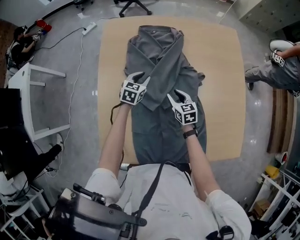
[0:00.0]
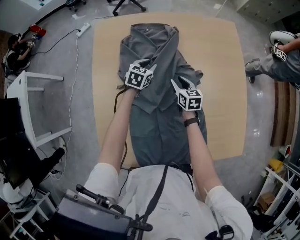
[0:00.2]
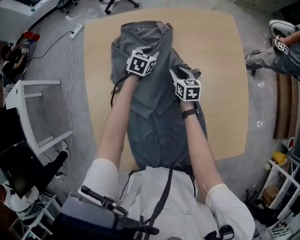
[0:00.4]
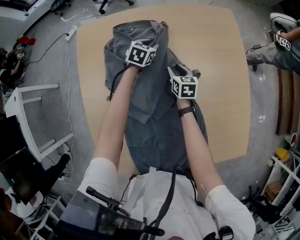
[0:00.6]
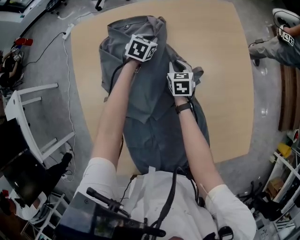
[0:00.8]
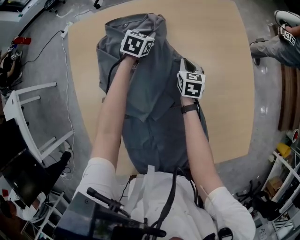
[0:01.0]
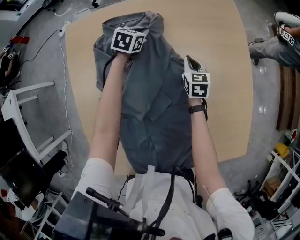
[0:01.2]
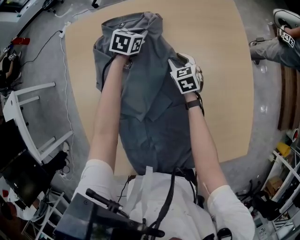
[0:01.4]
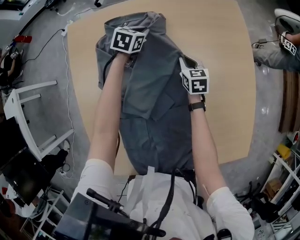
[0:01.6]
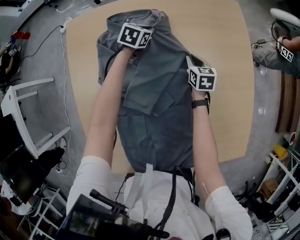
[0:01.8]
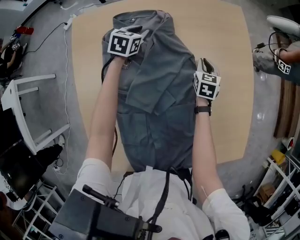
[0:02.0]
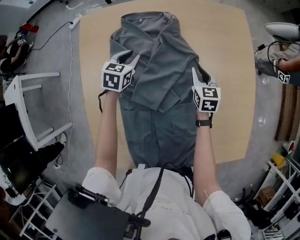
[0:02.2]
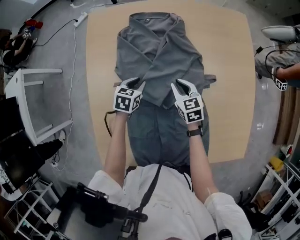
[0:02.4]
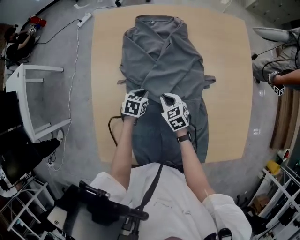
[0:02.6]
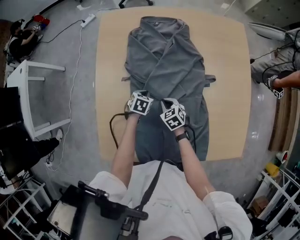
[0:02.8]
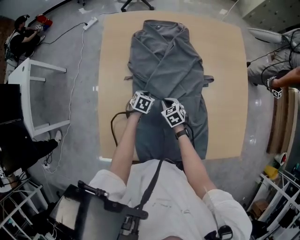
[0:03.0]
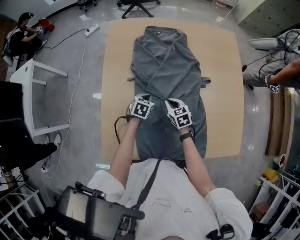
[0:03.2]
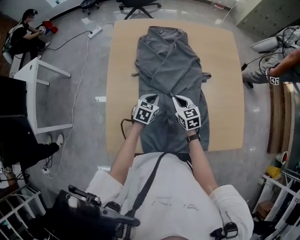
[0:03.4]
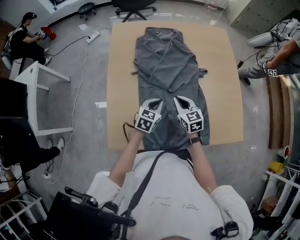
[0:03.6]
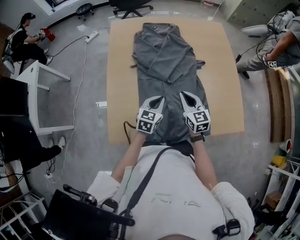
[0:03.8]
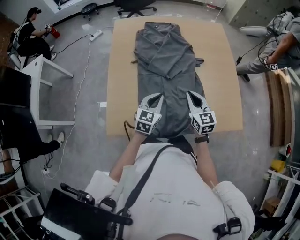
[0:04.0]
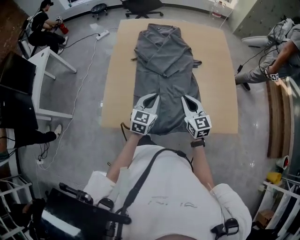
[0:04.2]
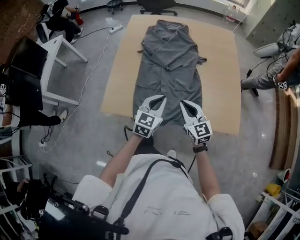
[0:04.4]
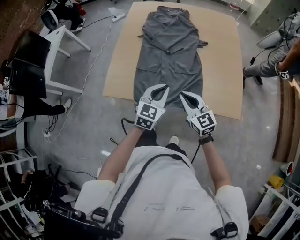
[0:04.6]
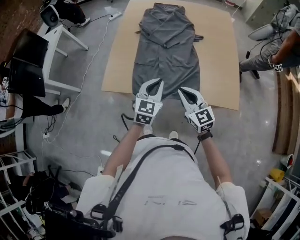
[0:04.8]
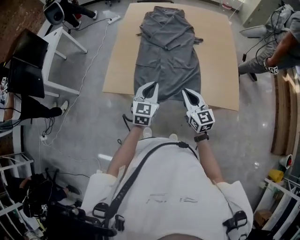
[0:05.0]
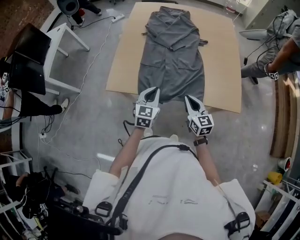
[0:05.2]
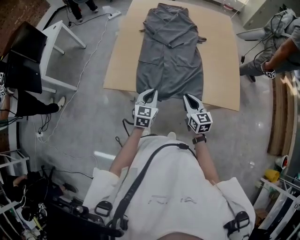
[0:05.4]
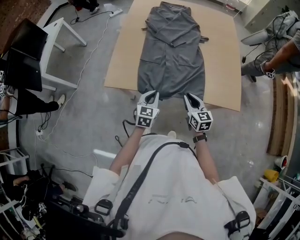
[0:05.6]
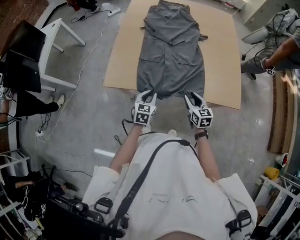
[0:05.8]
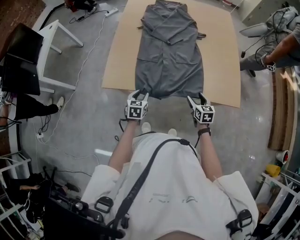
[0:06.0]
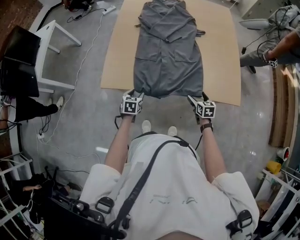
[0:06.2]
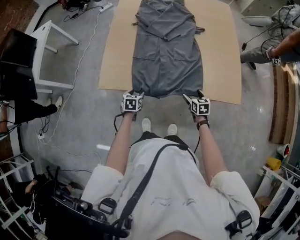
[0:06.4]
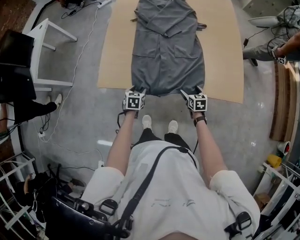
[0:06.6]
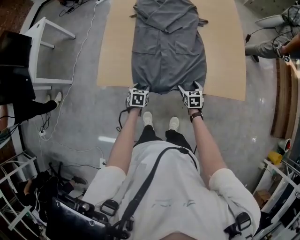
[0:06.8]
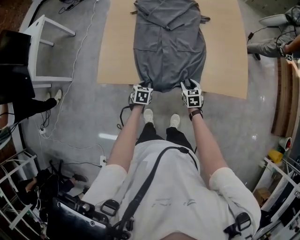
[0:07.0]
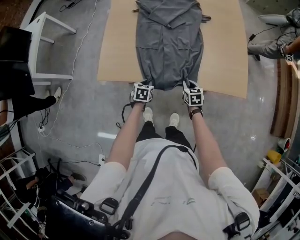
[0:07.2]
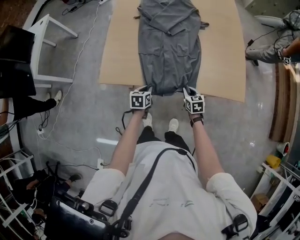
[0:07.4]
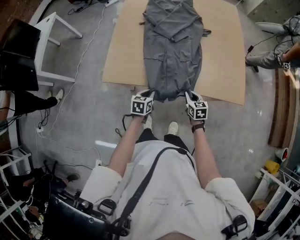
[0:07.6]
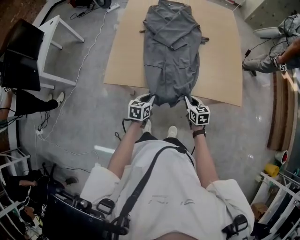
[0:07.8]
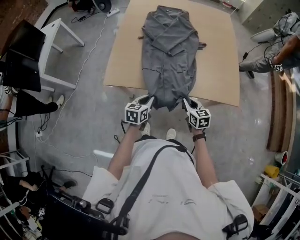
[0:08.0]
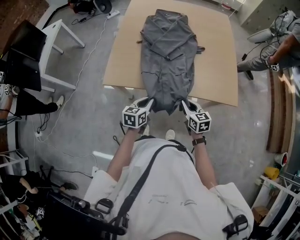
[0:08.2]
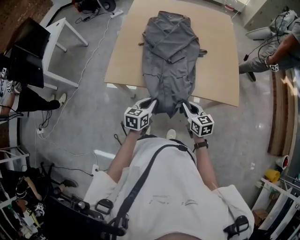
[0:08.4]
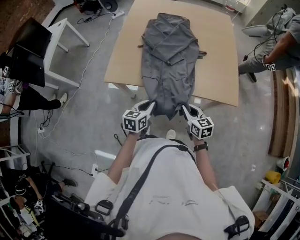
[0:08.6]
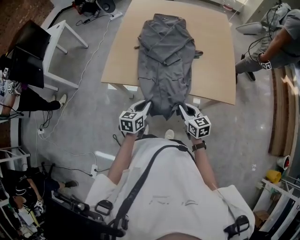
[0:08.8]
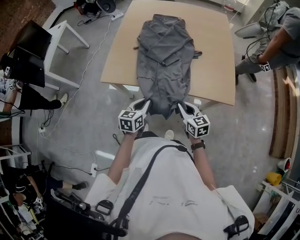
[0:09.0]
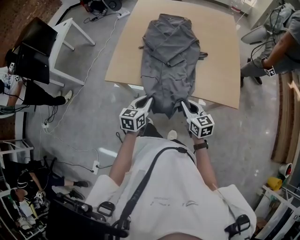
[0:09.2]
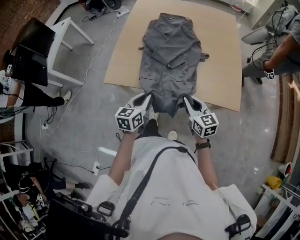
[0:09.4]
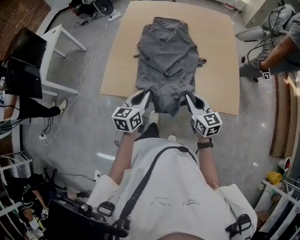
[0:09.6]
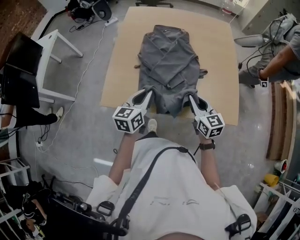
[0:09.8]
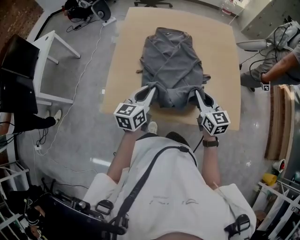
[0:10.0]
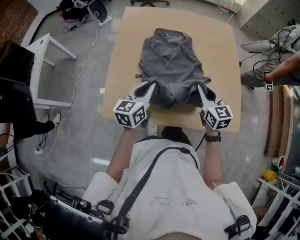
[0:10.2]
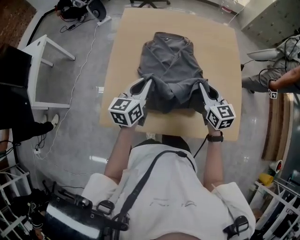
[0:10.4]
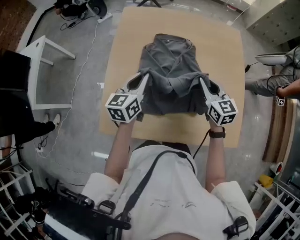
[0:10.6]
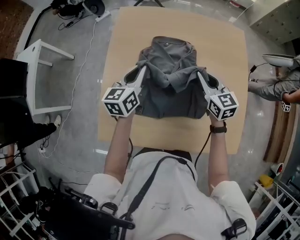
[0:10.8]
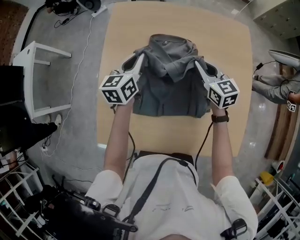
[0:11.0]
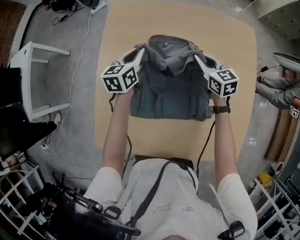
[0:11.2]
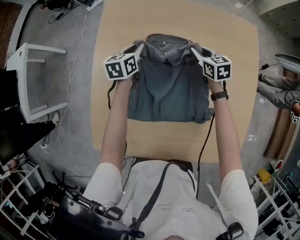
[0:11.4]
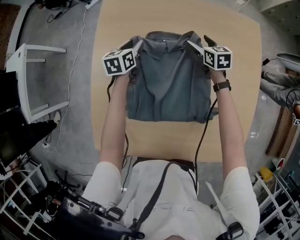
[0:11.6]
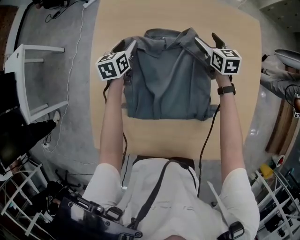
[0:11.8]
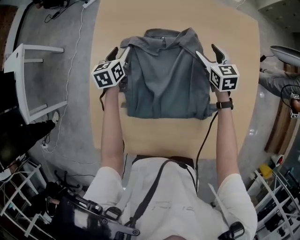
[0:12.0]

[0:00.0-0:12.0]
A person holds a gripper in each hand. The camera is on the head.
0:00.0 to 0:01.6: The left gripper travels forward by roughly 25 cm, and closes. Meanwhile the right gripper heads forward and to the right, covering approximately 25 cm.
0:01.6 to 0:03.0: The left gripper shifts by about 35 cm, turns by about 20 degrees, and opens and closes again, while the right gripper travels upward and back again, about 5 cm each way, and rotates about 30 degrees.
0:03.0 to 0:04.4: The two grippers go approximately 40 cm upward, backward and to the right. The right gripper points its fingers approximately 40 degrees further upward, while the left gripper tips its fingers upward by roughly 40 degrees.
0:04.4 to 0:06.0: The right gripper moves downward, backward and to the right, approximately 20 cm, changes its angle by approximately 30 degrees, and opens up; the left gripper shifts roughly 25 cm downward, to the left and backward, turns by approximately 30 degrees, and opens up.
0:06.0 to 0:07.6: The right gripper heads to the left, covering roughly 5 cm, and closes up. The left gripper moves roughly 10 cm downward and comes back, and closes up.
0:07.6 to 0:09.0: Both grippers travel together upward and backward, approximately 15 cm. The right gripper rotates about 20 degrees.
0:09.0 to 0:10.4: The grippers both shift forward by roughly 35 cm.
0:10.4 to 0:12.0: Both grippers travel together forward and downward, roughly 35 cm. The left gripper turns by approximately 30 degrees, and opens; the right gripper opens up.

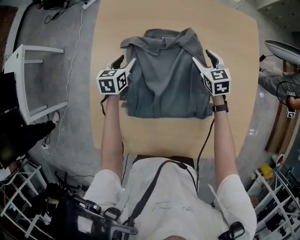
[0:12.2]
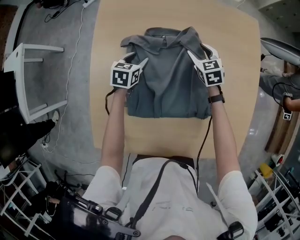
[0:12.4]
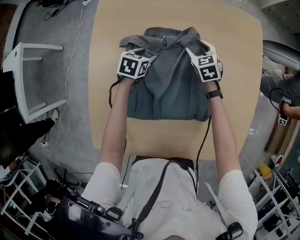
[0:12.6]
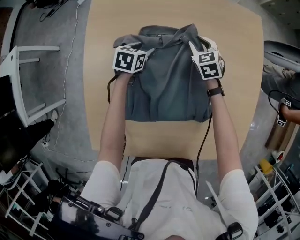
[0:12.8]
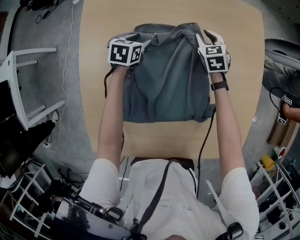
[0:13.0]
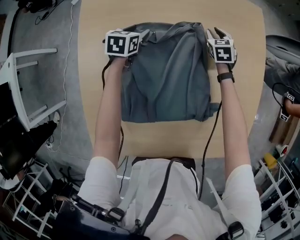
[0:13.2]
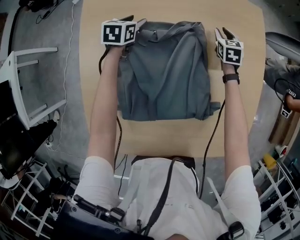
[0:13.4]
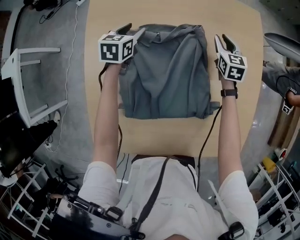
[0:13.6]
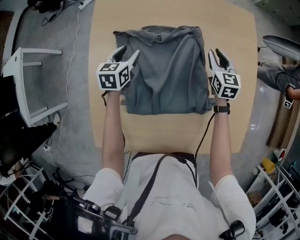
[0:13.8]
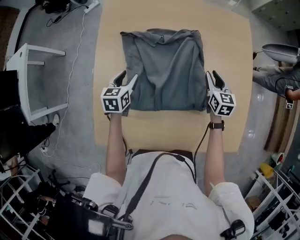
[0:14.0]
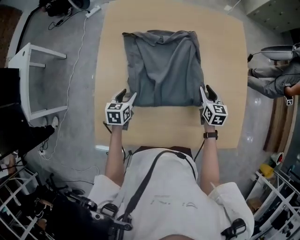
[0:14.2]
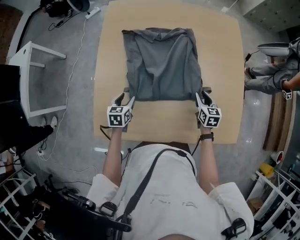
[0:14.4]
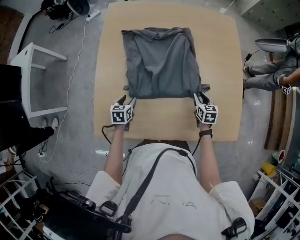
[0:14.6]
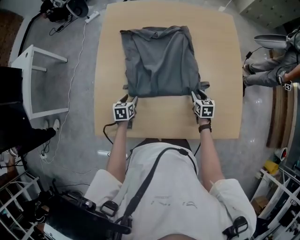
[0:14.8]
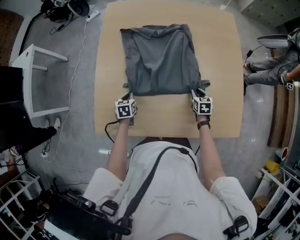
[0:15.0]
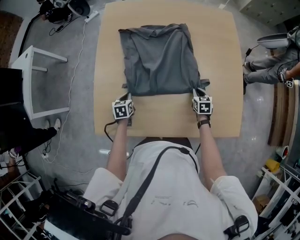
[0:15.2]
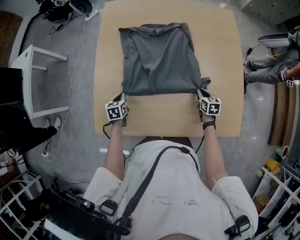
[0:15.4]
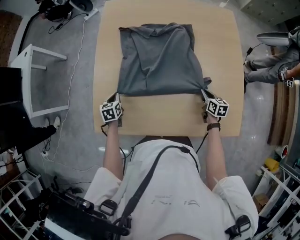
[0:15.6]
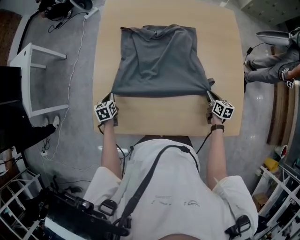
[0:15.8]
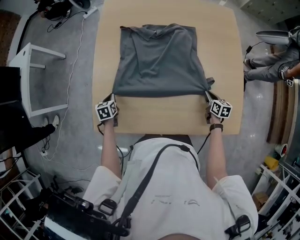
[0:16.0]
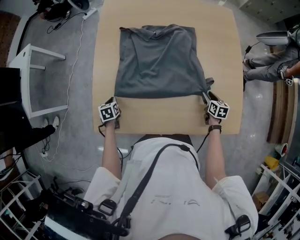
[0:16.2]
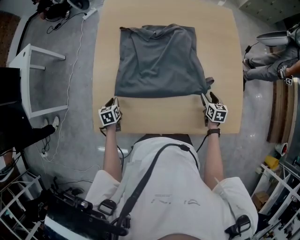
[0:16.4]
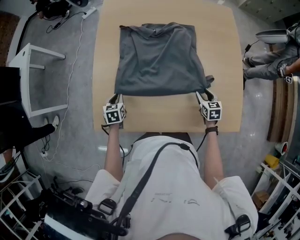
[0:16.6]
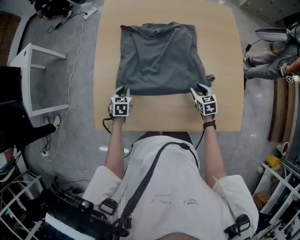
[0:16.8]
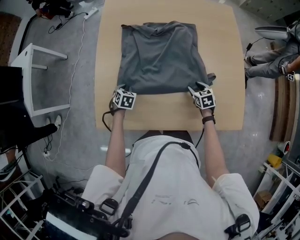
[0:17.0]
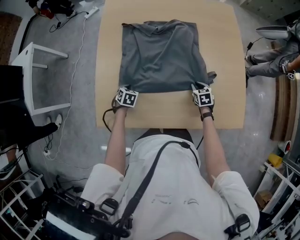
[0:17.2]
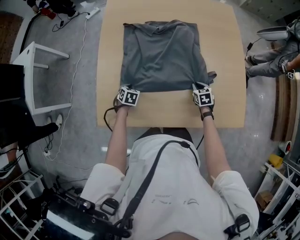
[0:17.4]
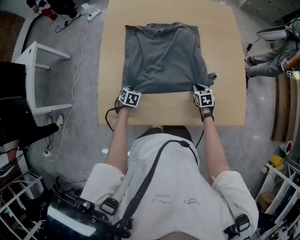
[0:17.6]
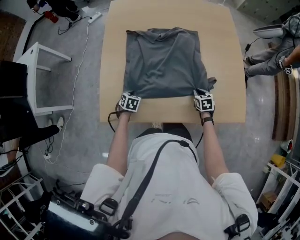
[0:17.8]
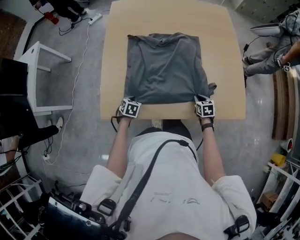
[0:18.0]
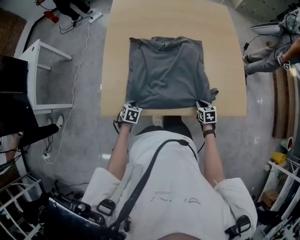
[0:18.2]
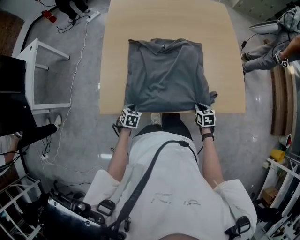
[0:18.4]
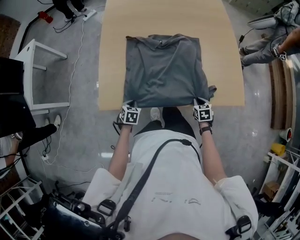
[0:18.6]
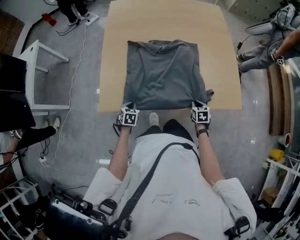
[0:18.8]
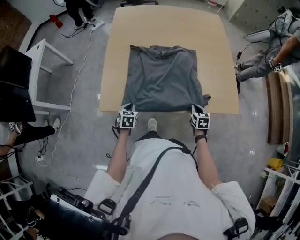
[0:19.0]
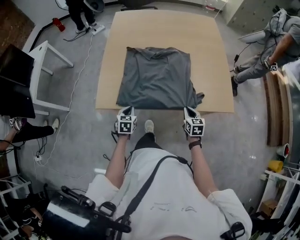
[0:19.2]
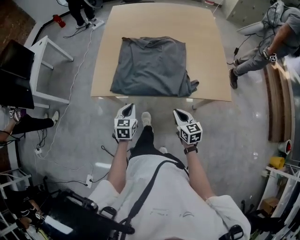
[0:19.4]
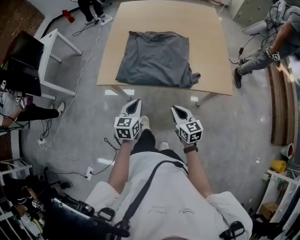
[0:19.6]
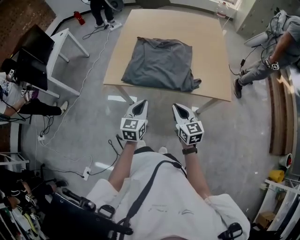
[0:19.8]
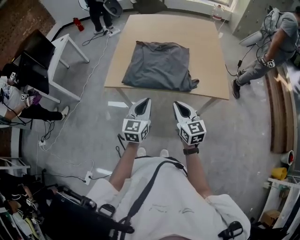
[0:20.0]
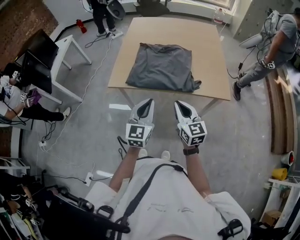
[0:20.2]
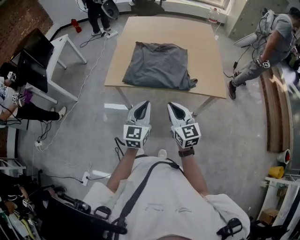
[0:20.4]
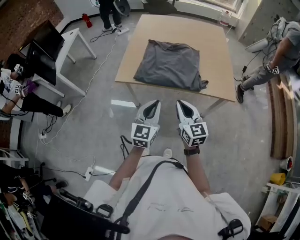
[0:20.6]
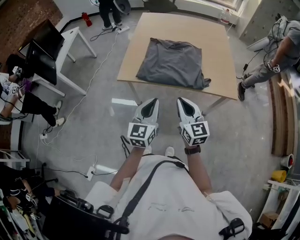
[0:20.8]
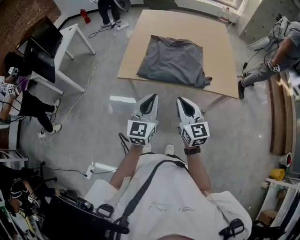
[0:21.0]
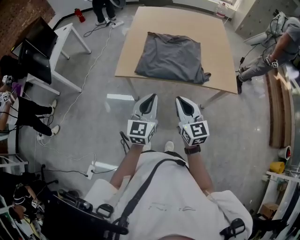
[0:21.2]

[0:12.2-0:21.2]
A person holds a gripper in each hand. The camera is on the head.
0:12.2 to 0:13.8: The left gripper moves approximately 15 cm forward and comes back, while the right gripper is displaced to the right by approximately 5 cm, and closes its fingers.
0:13.8 to 0:15.2: Both grippers travel together backward and downward, roughly 30 cm. The left gripper closes, while the right gripper turns by roughly 20 degrees.
0:15.2 to 0:16.6: The right gripper ends up some 5 cm from where it was, and opens up, while the left gripper moves to the left, approximately 5 cm.
0:16.6 to 0:18.2: The left gripper shifts roughly 15 cm backward and downward, and rotates roughly 20 degrees. Meanwhile the right gripper is displaced backward by about 15 cm, and closes.
0:18.2 to 0:19.8: The left gripper is displaced upward, backward and to the right by approximately 40 cm, and angles its fingers upward, by some 40 degrees; the right gripper is displaced upward and backward by roughly 35 cm, and tips its fingers upward by some 40 degrees.
0:19.8 to 0:21.2: The right gripper moves to the left and upward, about 15 cm, while the left gripper goes roughly 10 cm upward and to the left.

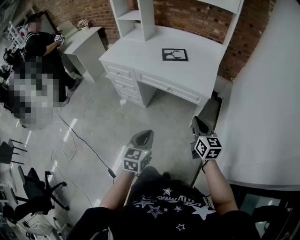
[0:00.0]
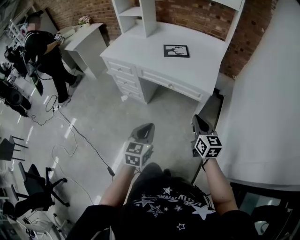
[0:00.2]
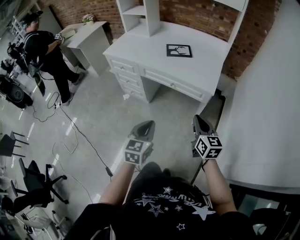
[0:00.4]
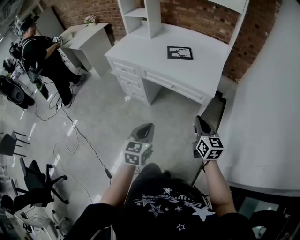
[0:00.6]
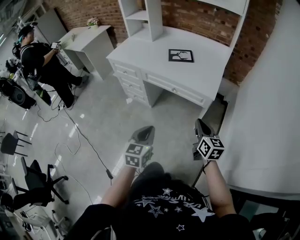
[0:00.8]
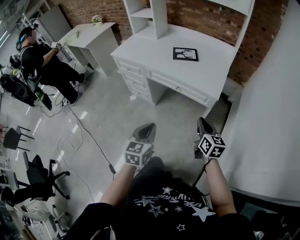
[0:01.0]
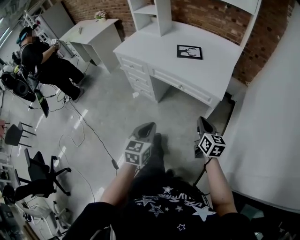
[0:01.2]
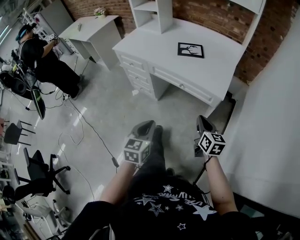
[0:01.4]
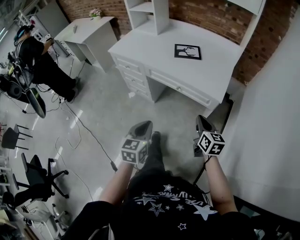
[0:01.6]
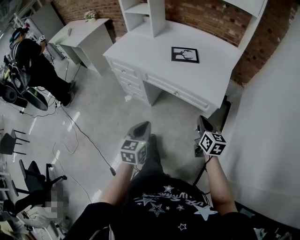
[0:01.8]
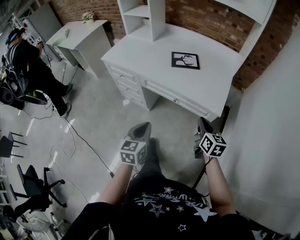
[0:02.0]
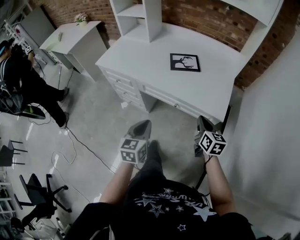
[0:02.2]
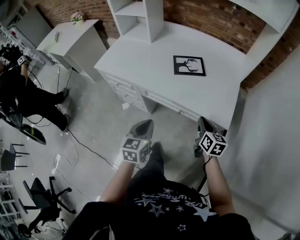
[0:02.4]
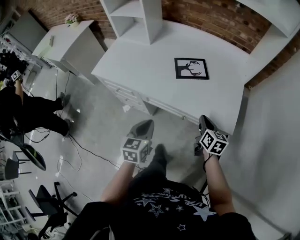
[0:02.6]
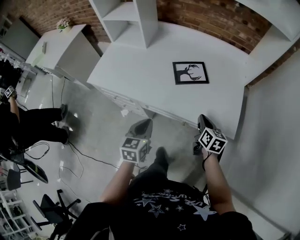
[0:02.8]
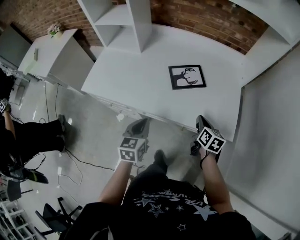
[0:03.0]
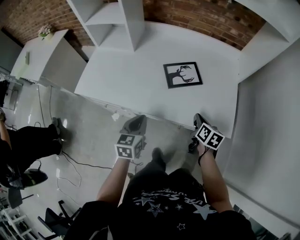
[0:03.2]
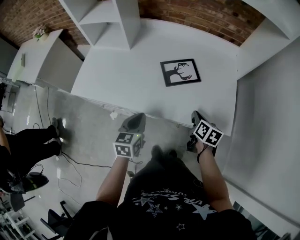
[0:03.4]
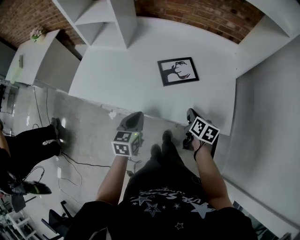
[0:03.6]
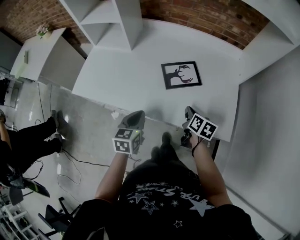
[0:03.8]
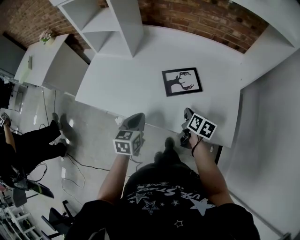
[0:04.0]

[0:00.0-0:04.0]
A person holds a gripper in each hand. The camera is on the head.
0:00.0 to 0:01.4: The right gripper changes place by some 5 cm.
0:01.4 to 0:02.6: The two grippers go approximately 30 cm forward.
0:02.6 to 0:04.0: The right gripper shifts about 15 cm forward and to the left, and swivels roughly 20 degrees; the left gripper heads forward, covering about 15 cm.
